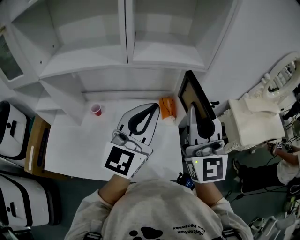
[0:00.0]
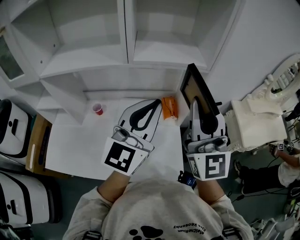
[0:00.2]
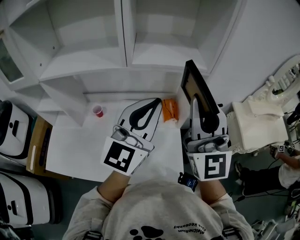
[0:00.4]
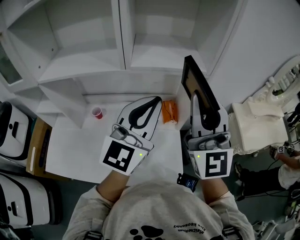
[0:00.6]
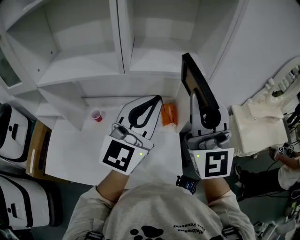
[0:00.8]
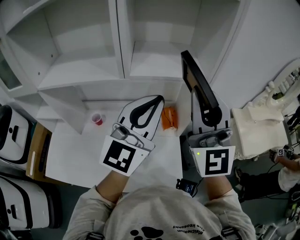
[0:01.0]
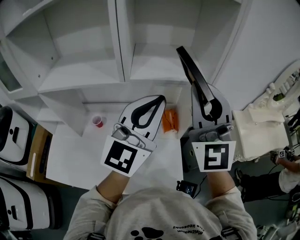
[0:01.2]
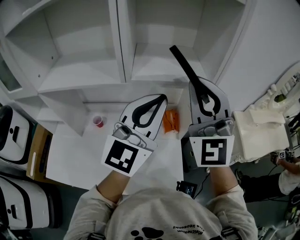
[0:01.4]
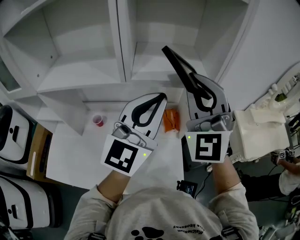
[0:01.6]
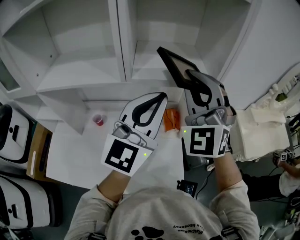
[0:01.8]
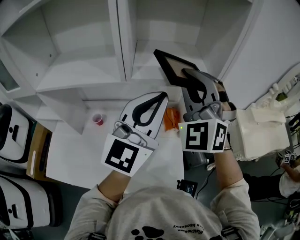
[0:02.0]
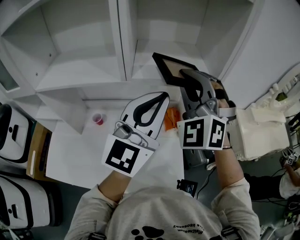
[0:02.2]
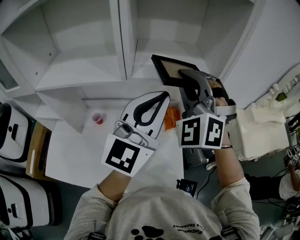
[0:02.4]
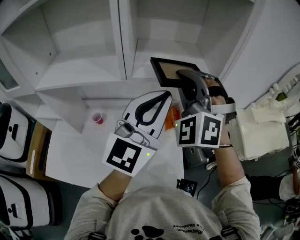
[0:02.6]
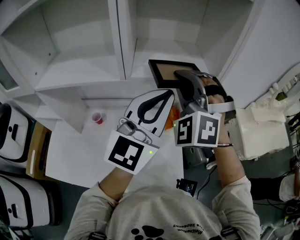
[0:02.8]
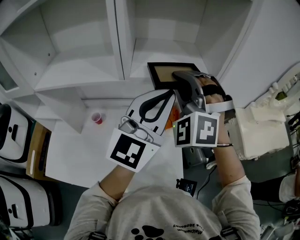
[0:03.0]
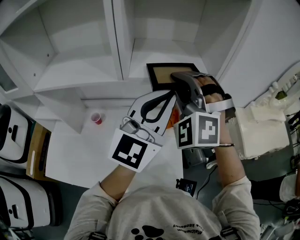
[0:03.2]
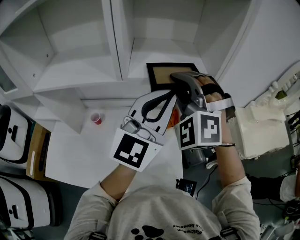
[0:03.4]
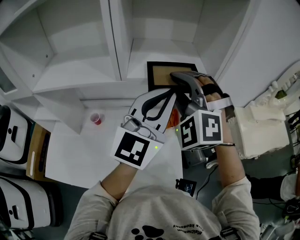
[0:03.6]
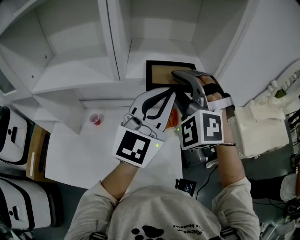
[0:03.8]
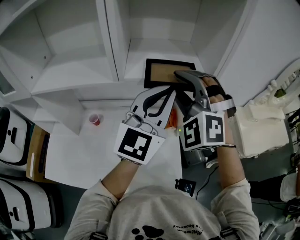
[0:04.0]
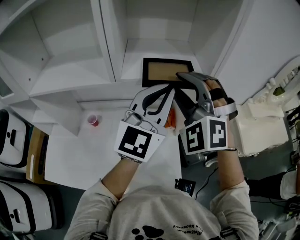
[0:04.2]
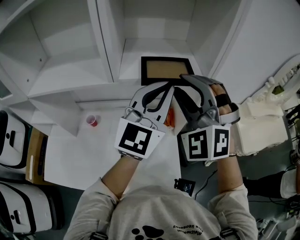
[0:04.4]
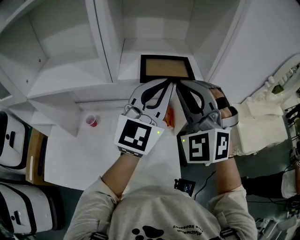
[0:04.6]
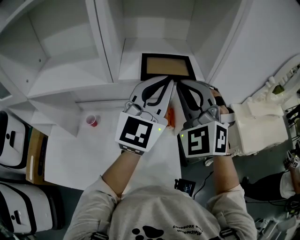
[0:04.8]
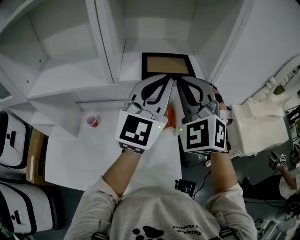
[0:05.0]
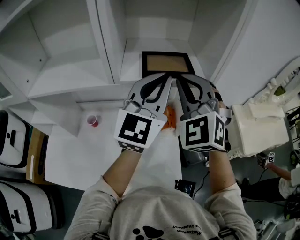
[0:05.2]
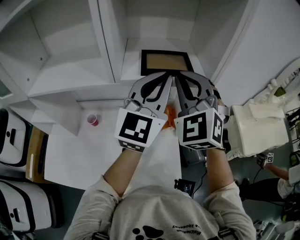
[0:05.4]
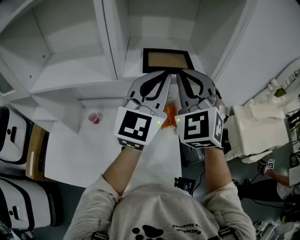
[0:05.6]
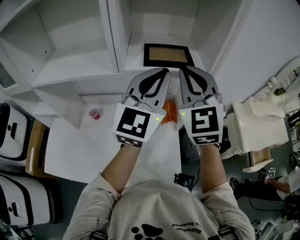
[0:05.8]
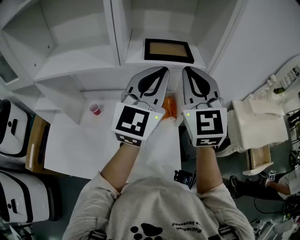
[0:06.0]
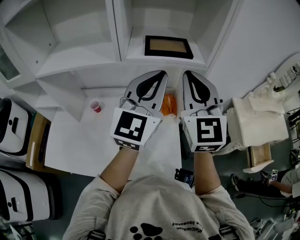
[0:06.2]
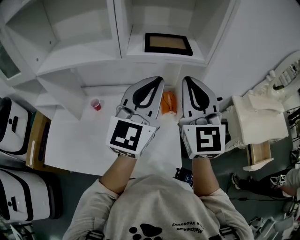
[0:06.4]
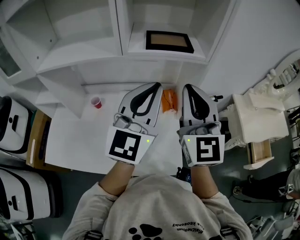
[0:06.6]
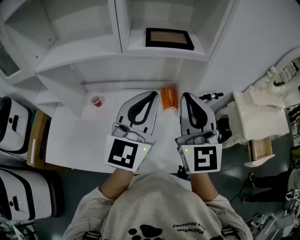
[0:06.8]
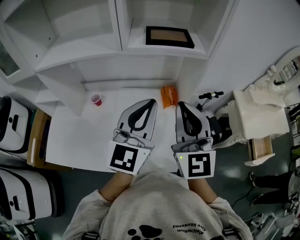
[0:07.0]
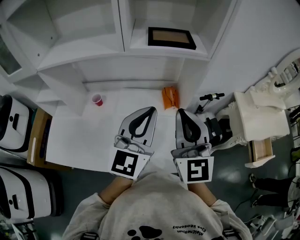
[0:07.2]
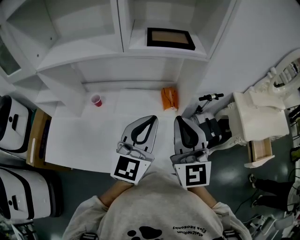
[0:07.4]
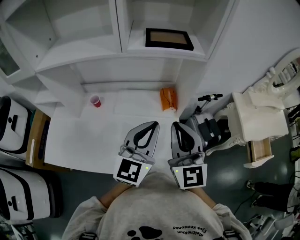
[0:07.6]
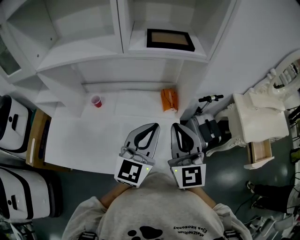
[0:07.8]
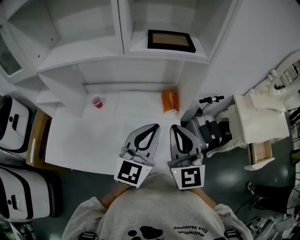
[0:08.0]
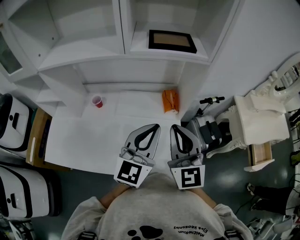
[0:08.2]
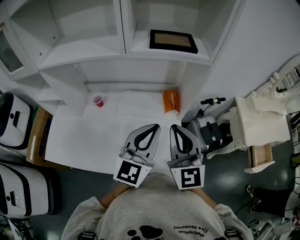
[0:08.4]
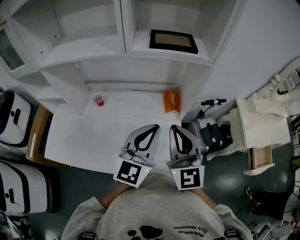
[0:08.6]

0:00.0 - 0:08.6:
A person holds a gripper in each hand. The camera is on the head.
0:00.0 - 0:01.4: Both grippers travel together forward and upward, roughly 10 cm. The right gripper swivels about 20 degrees.
0:01.4 - 0:02.8: The right gripper shifts about 10 cm forward, downward and to the left, and rotates about 50 degrees.
0:02.8 - 0:04.4: The left gripper shifts by roughly 5 cm. The right gripper opens its fingers.
0:04.4 - 0:05.8: The right gripper turns by some 40 degrees, and closes up.
0:05.8 - 0:07.2: Both grippers travel together backward and downward, approximately 20 cm. The right gripper rotates approximately 30 degrees.
0:07.2 - 0:08.6: The two grippers go approximately 5 cm downward.

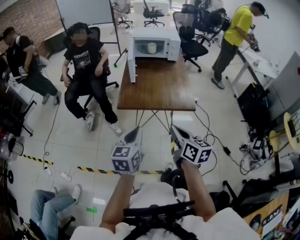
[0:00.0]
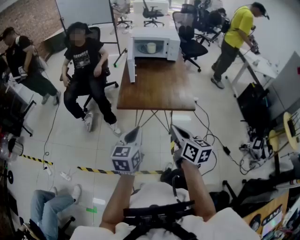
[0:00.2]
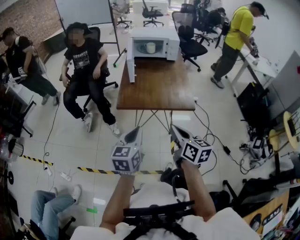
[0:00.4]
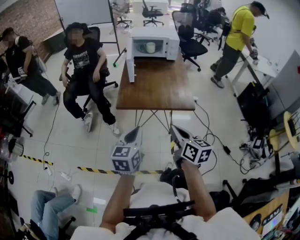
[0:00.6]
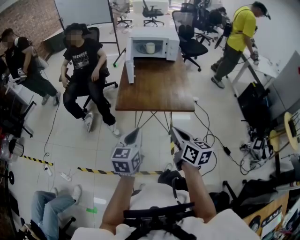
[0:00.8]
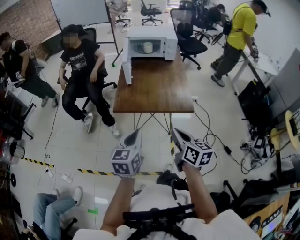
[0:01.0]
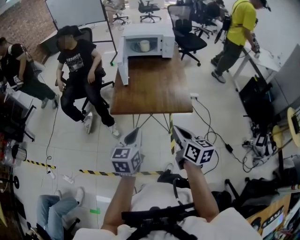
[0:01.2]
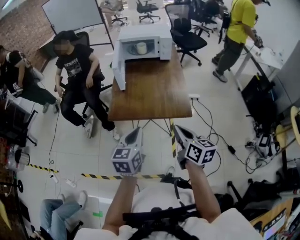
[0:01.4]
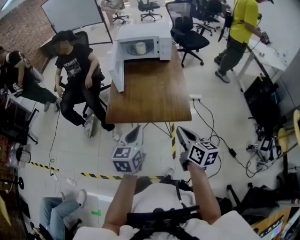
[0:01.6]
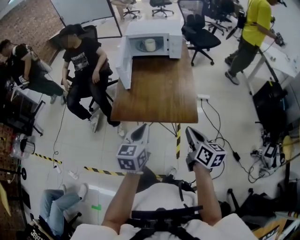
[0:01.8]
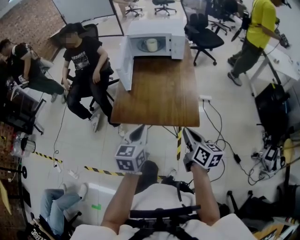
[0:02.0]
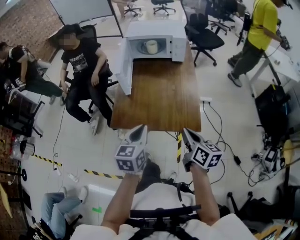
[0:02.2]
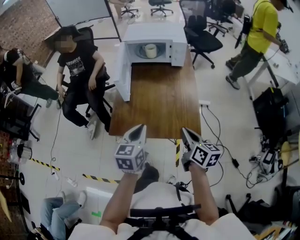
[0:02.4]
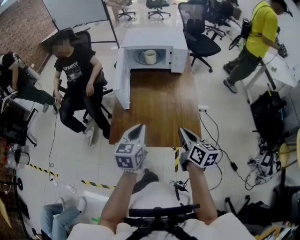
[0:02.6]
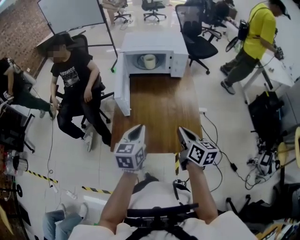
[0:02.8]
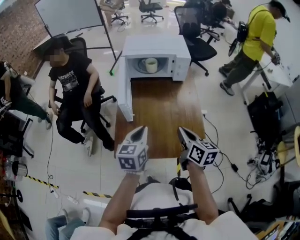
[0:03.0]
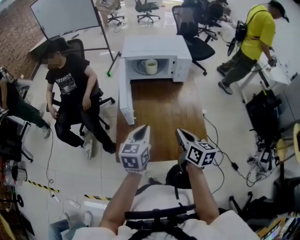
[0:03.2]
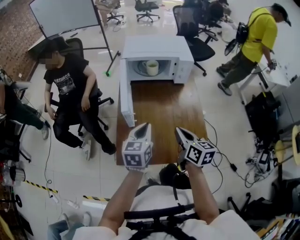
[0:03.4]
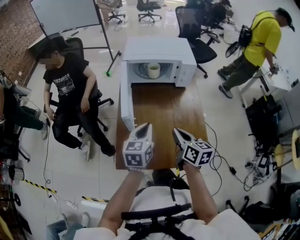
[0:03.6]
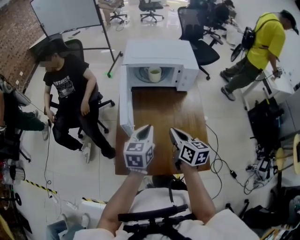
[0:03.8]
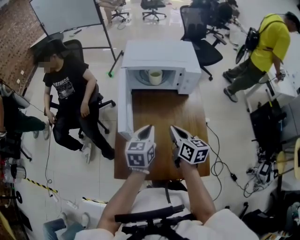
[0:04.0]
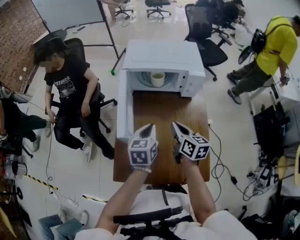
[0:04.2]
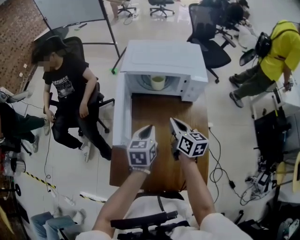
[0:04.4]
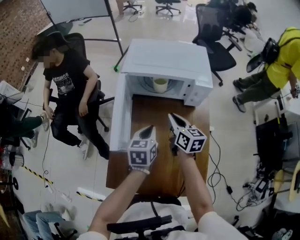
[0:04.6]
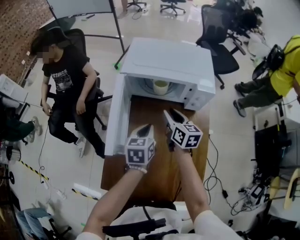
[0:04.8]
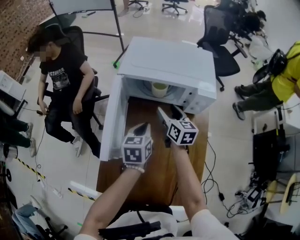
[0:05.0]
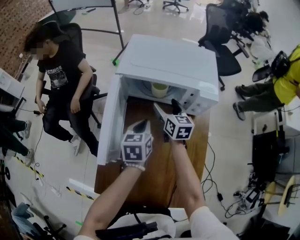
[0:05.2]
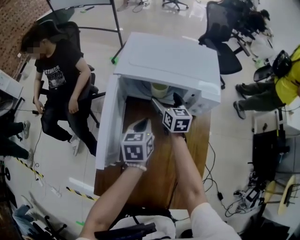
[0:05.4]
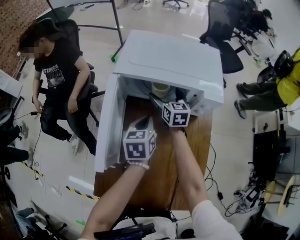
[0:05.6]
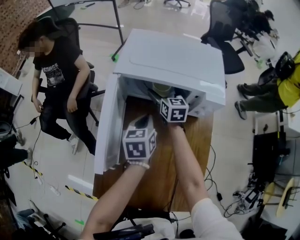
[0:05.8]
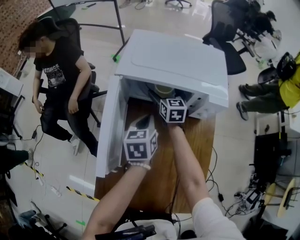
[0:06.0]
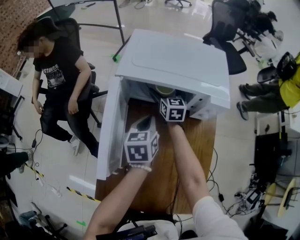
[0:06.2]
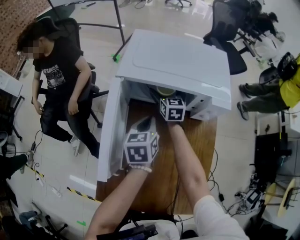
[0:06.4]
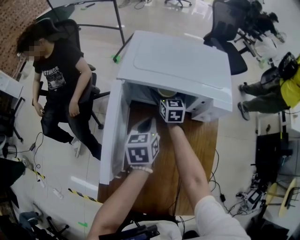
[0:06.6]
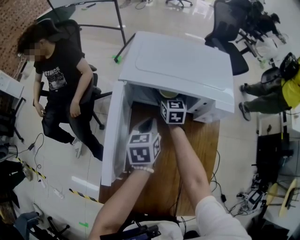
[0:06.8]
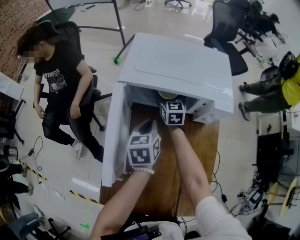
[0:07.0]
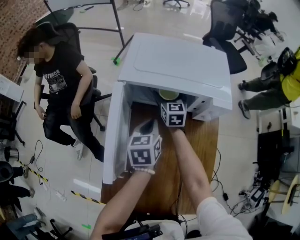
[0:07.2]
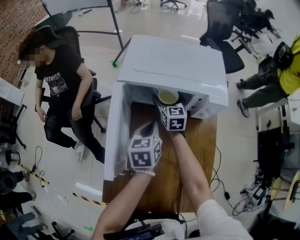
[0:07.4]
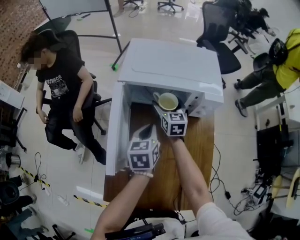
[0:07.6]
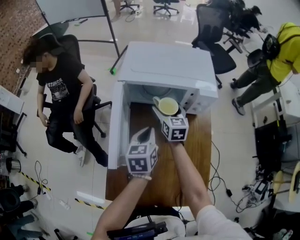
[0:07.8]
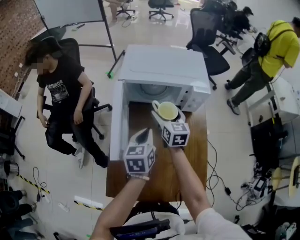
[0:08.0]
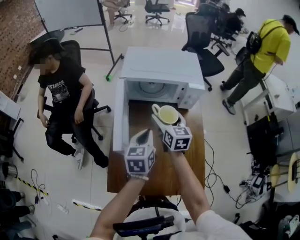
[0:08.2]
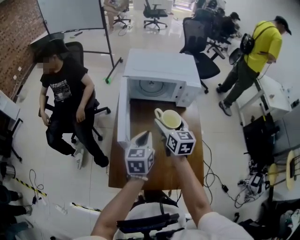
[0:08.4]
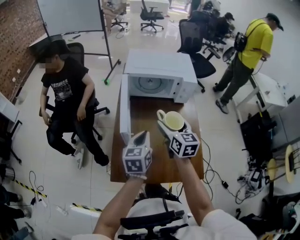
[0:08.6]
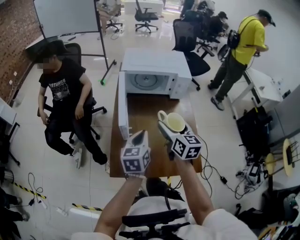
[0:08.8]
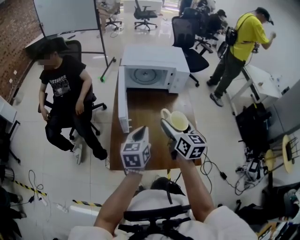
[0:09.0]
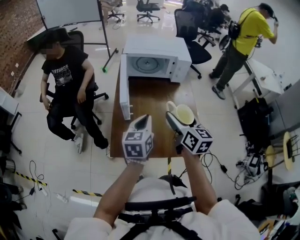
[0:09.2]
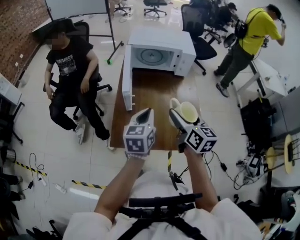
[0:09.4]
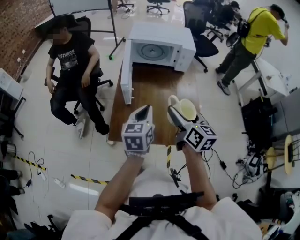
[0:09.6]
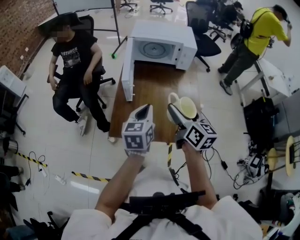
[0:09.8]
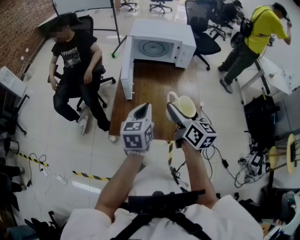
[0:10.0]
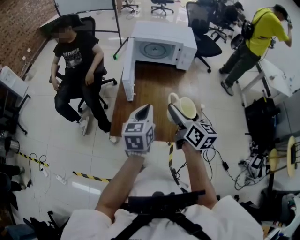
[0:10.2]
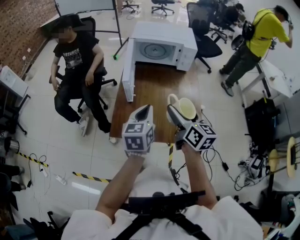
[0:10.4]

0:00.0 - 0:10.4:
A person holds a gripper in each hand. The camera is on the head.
0:00.0 - 0:01.4: The right gripper travels to the right and forward by approximately 15 cm; the left gripper goes roughly 15 cm forward and to the right.
0:01.4 - 0:03.0: Both grippers move forward, approximately 30 cm.
0:03.0 - 0:04.4: Both grippers travel together forward, about 25 cm.
0:04.4 - 0:06.0: The left gripper moves forward, roughly 15 cm. The right gripper moves forward, about 30 cm, changes its angle by approximately 20 degrees, and opens its fingers.
0:06.0 - 0:07.4: The grippers make only small movements.
0:07.4 - 0:09.0: The left gripper goes roughly 30 cm backward; the right gripper heads backward and upward, covering some 50 cm.
0:09.0 - 0:10.4: Both grippers travel together backward, about 10 cm.

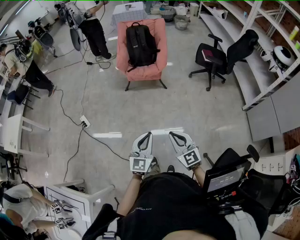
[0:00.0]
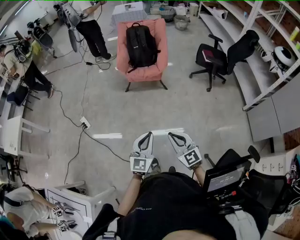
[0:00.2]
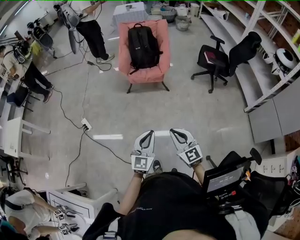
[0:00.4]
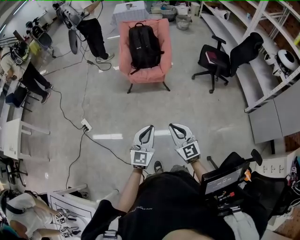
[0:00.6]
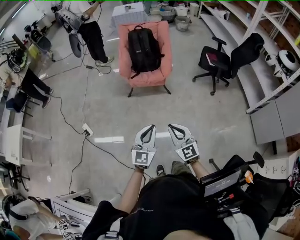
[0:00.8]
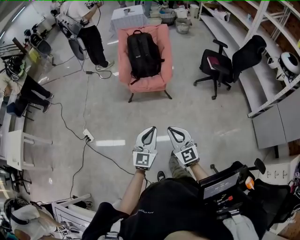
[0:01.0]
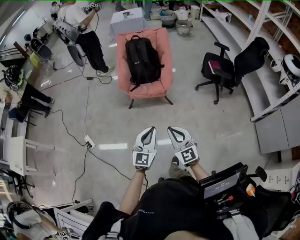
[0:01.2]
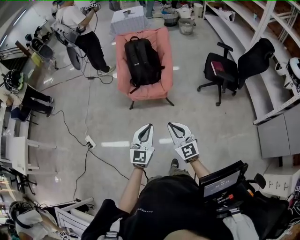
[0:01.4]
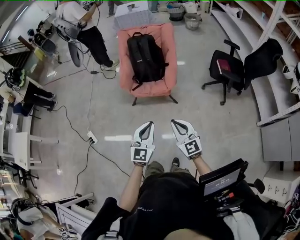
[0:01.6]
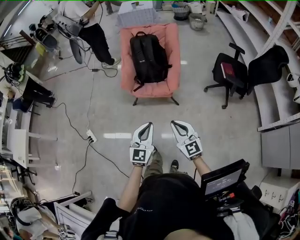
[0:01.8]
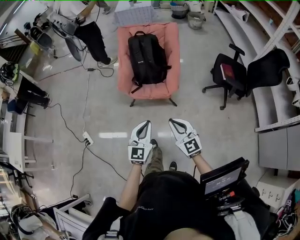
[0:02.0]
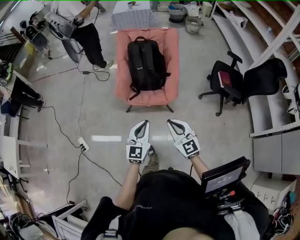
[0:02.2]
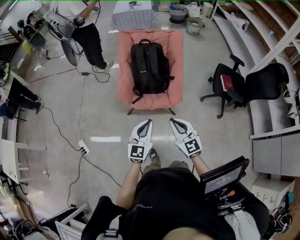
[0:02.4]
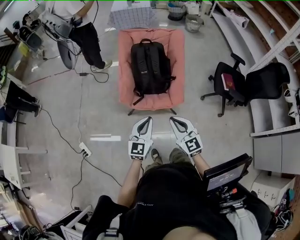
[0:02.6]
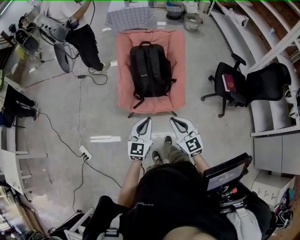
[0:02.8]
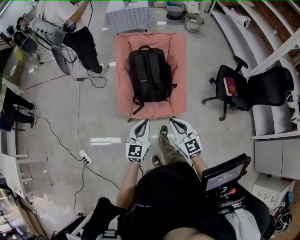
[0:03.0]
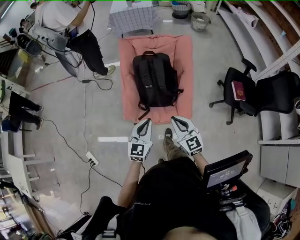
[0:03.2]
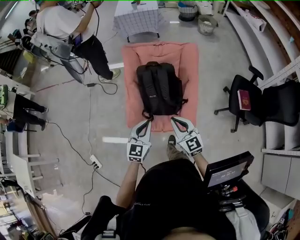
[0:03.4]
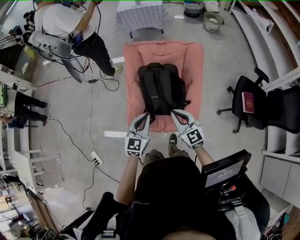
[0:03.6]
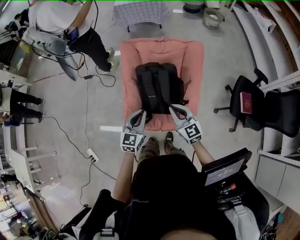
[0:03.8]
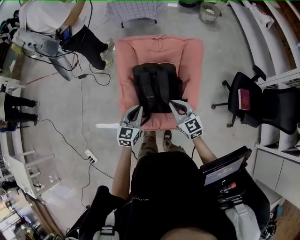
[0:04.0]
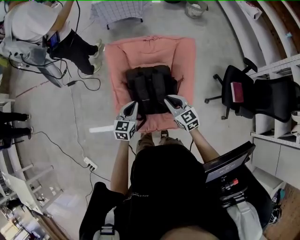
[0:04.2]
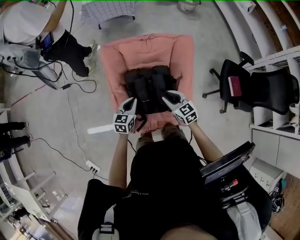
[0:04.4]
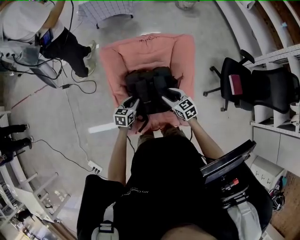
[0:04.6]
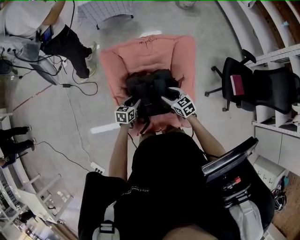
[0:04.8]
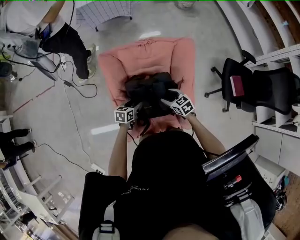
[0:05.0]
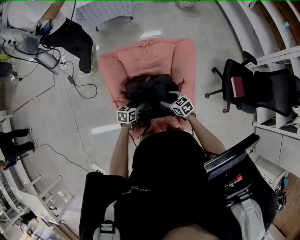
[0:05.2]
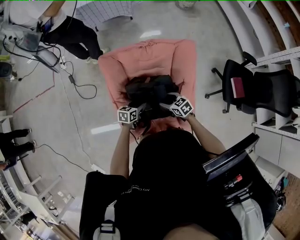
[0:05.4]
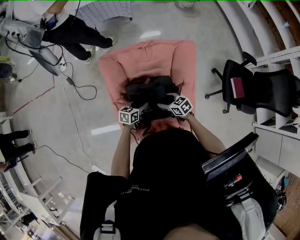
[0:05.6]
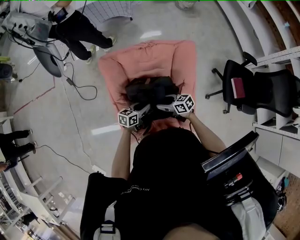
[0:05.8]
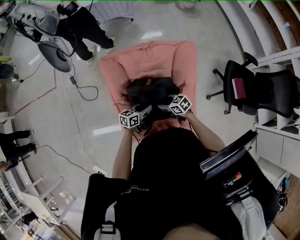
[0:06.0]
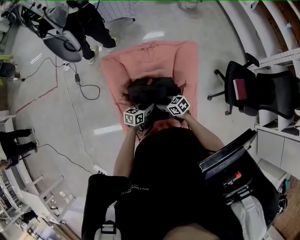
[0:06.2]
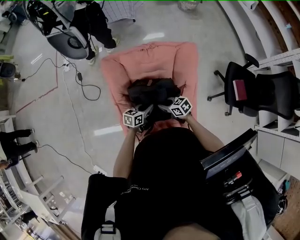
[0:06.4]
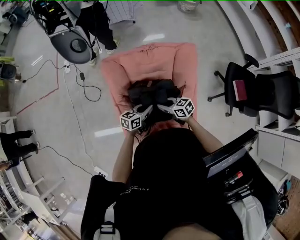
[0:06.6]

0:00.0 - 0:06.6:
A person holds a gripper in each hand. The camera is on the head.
0:00.0 - 0:01.6: The grippers both shift forward by roughly 40 cm.
0:01.6 - 0:03.2: Both grippers are carried forward, roughly 50 cm.
0:03.2 - 0:05.0: Both grippers move forward and downward, roughly 40 cm. The left gripper points its fingers roughly 30 degrees further downward, and opens. The right gripper tilts its fingers some 30 degrees downward, and opens up.
0:05.0 - 0:06.6: The right gripper shifts by approximately 5 cm, changes its angle by roughly 30 degrees, and closes up; the left gripper ends up some 10 cm from where it was, rotates about 20 degrees, and closes up.
